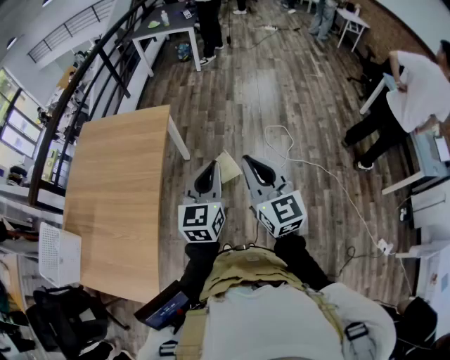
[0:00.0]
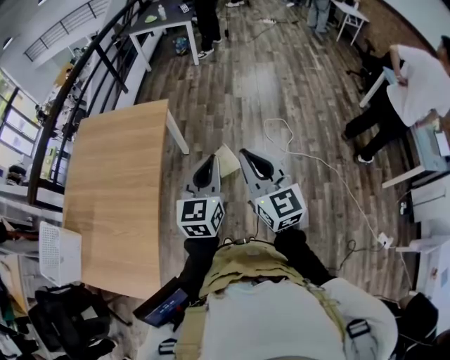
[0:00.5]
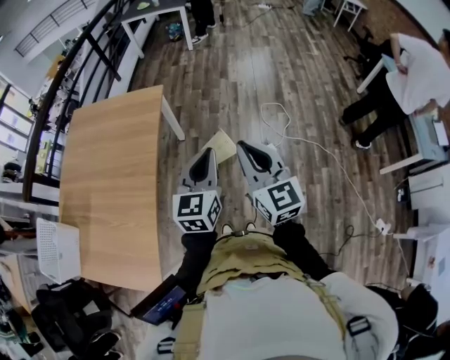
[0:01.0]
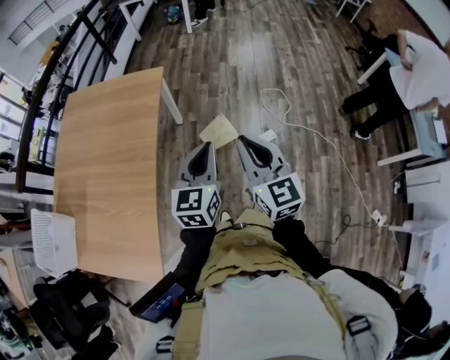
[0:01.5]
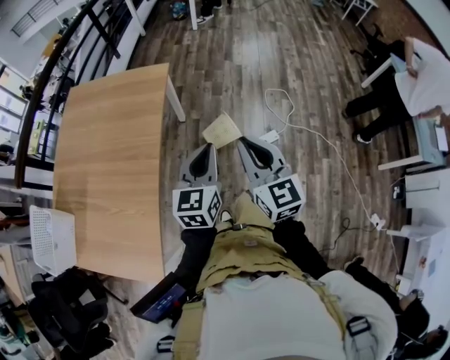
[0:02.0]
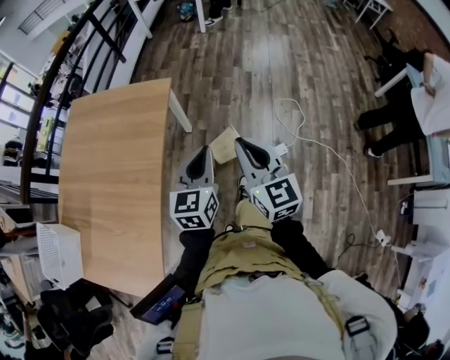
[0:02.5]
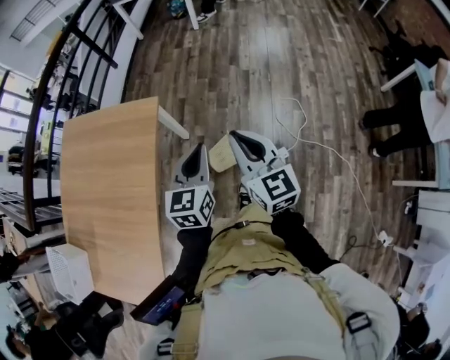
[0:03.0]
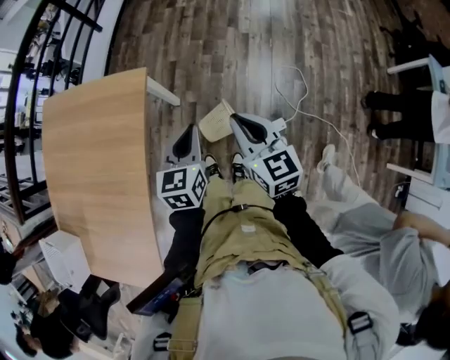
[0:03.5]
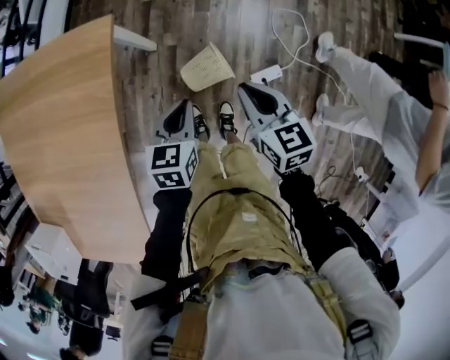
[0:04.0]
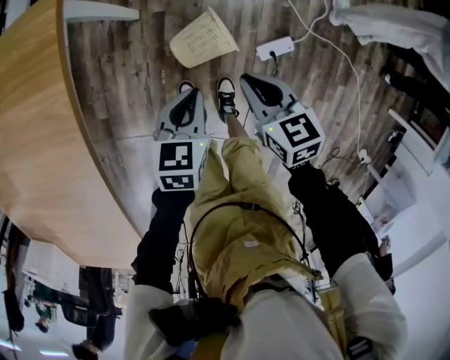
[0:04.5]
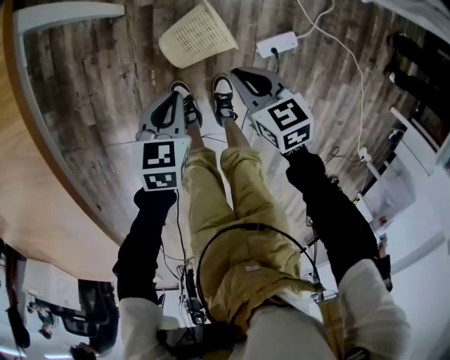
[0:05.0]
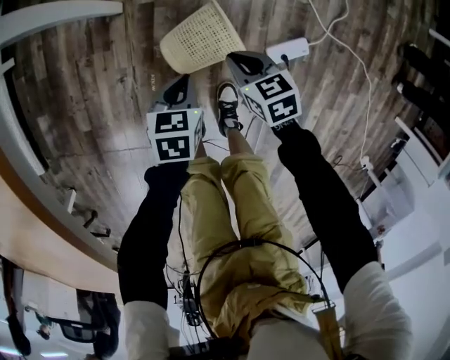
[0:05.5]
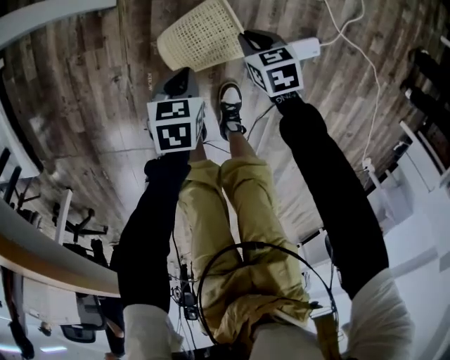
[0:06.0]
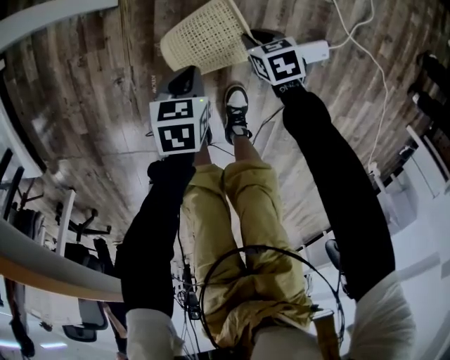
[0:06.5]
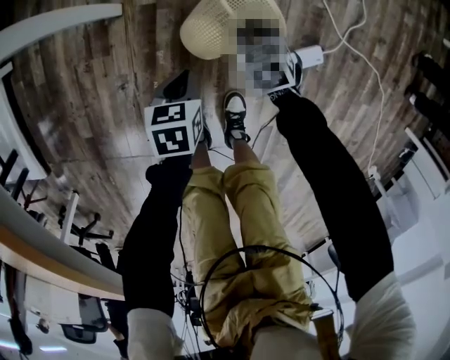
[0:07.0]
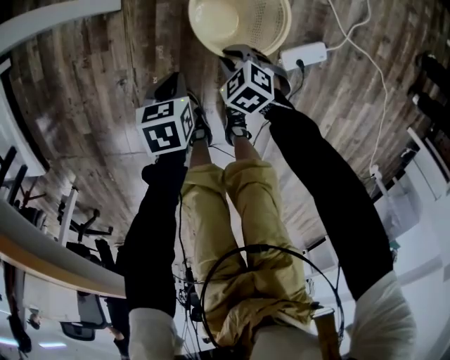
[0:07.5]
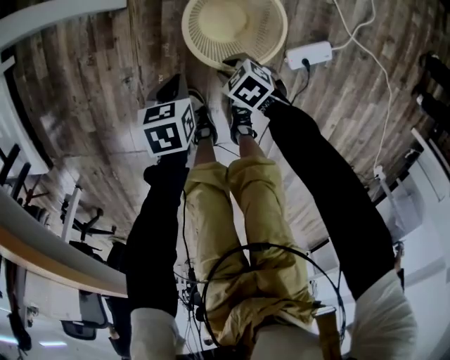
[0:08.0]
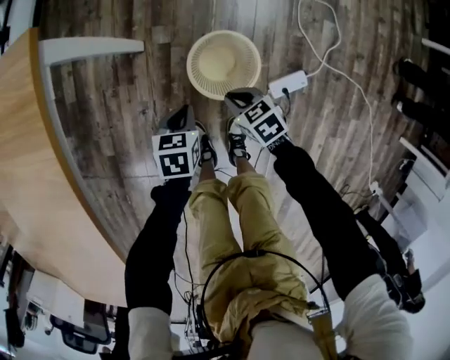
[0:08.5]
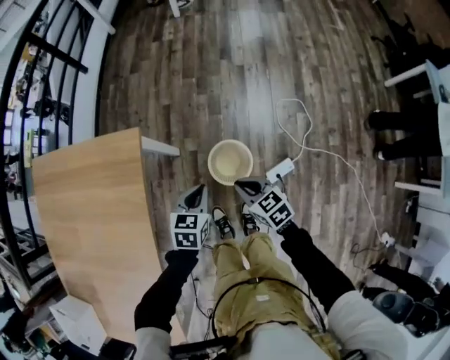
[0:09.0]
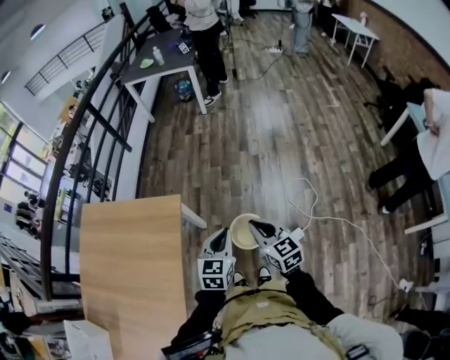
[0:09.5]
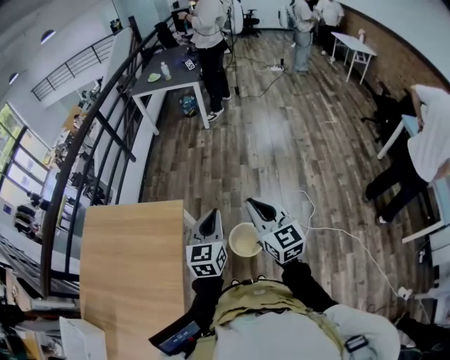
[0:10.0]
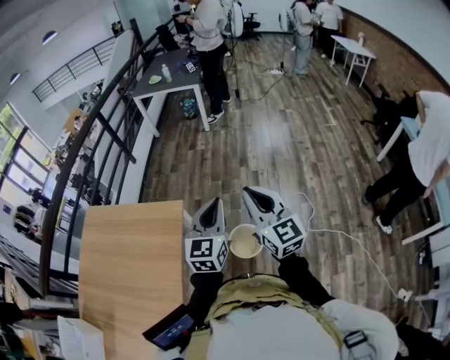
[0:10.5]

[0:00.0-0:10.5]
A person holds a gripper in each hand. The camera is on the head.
0:00.0 to 0:02.0: The two grippers go some 10 cm to the left and downward.
0:02.0 to 0:04.0: Both grippers travel together forward and downward, approximately 40 cm. The right gripper rotates roughly 30 degrees, while the left gripper changes its angle by roughly 30 degrees.
0:04.0 to 0:06.5: Both grippers travel together downward, some 60 cm. The right gripper tilts its fingers about 30 degrees downward; the left gripper swivels some 20 degrees.
0:06.5 to 0:08.5: The left gripper is displaced upward by about 15 cm, while the right gripper moves up and down over roughly 20 cm, changing direction 2 times.
0:08.5 to 0:10.5: The two grippers go roughly 80 cm upward. The left gripper tilts its fingers some 60 degrees upward. The right gripper points its fingers approximately 60 degrees further upward.

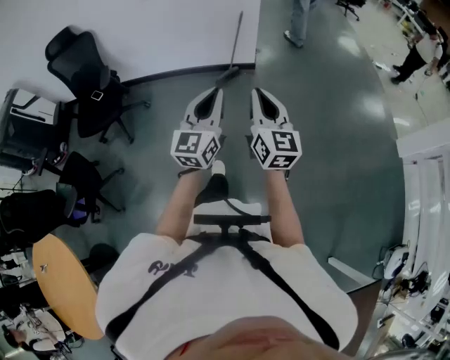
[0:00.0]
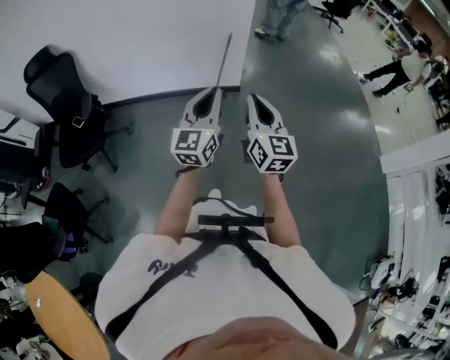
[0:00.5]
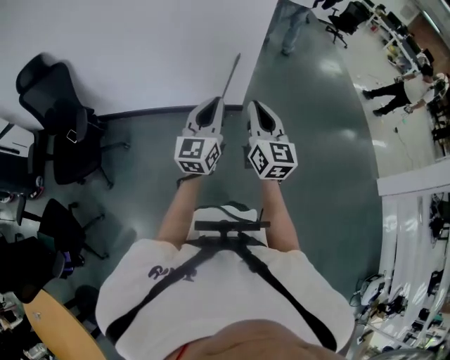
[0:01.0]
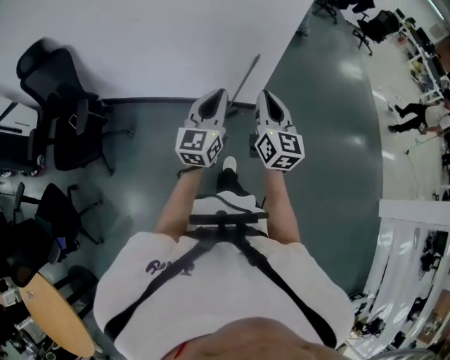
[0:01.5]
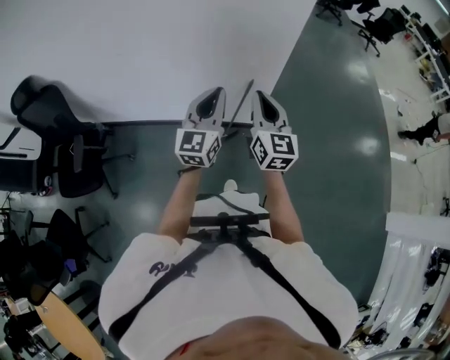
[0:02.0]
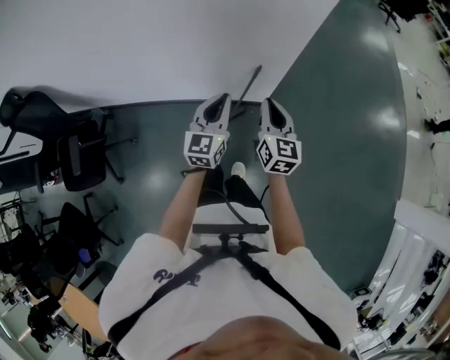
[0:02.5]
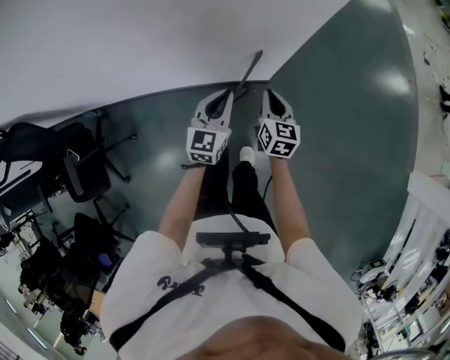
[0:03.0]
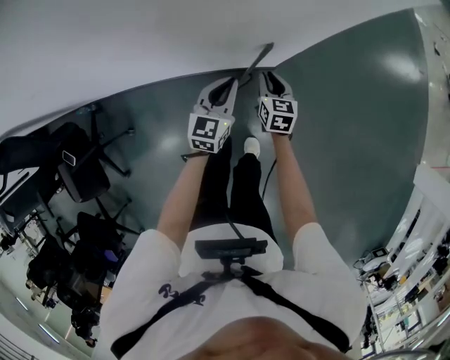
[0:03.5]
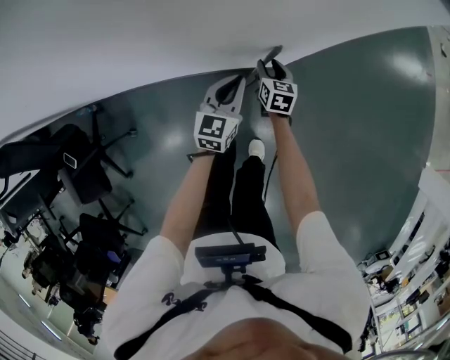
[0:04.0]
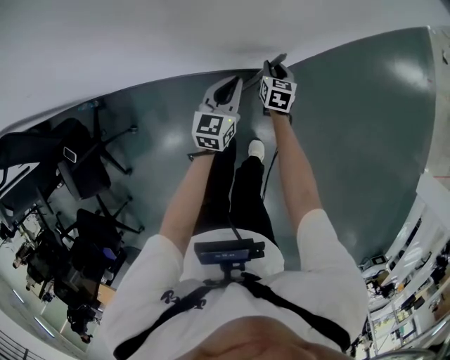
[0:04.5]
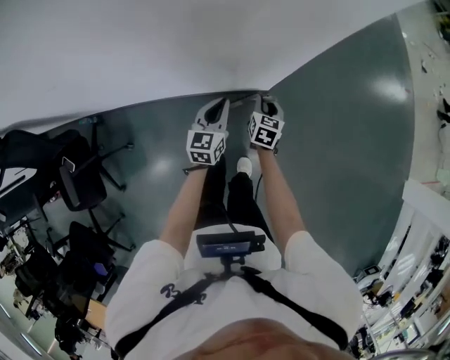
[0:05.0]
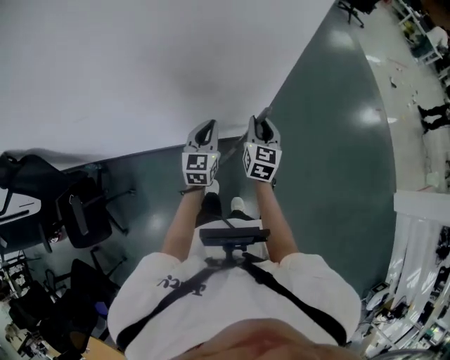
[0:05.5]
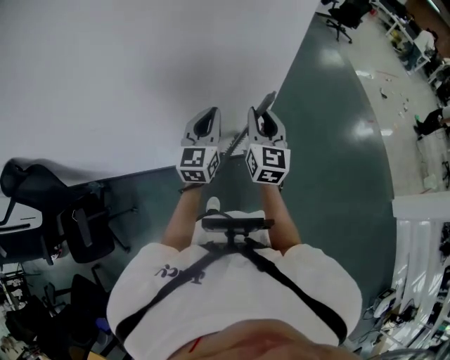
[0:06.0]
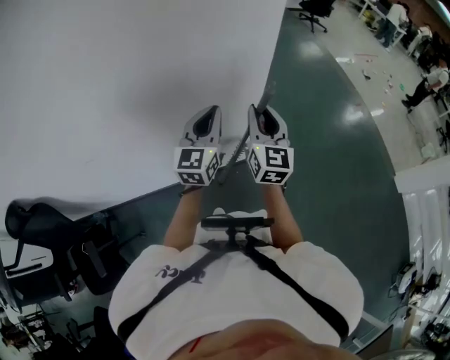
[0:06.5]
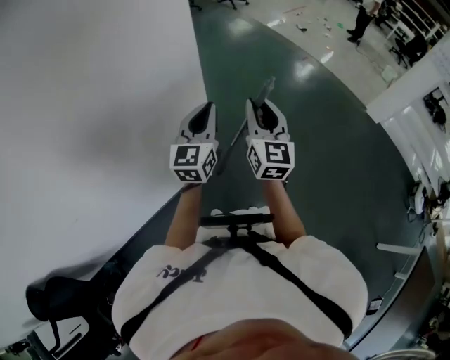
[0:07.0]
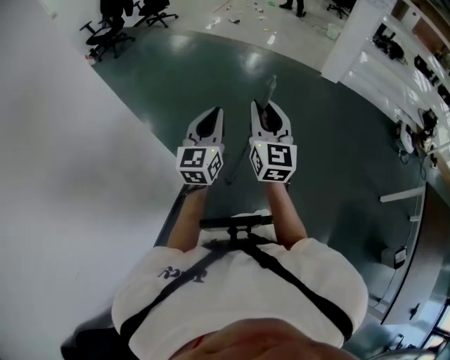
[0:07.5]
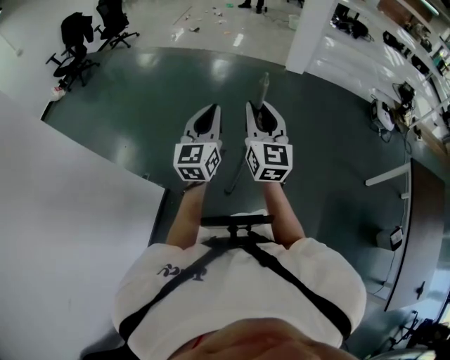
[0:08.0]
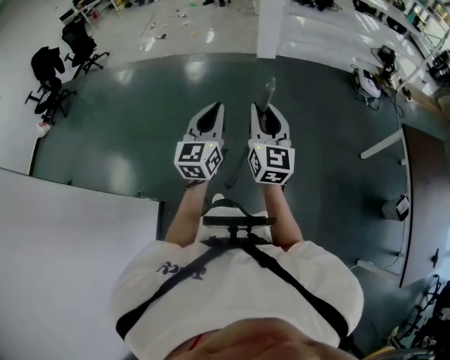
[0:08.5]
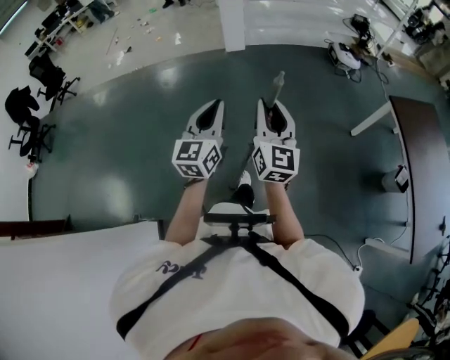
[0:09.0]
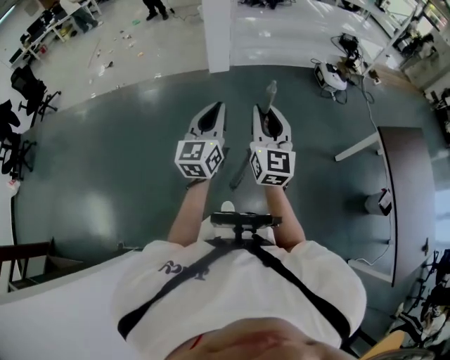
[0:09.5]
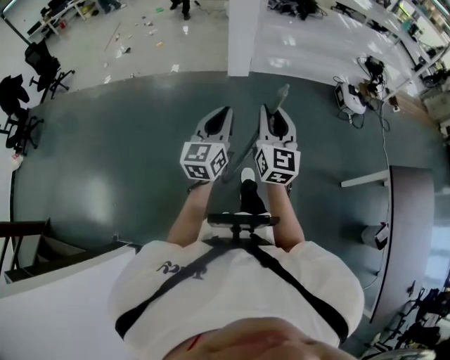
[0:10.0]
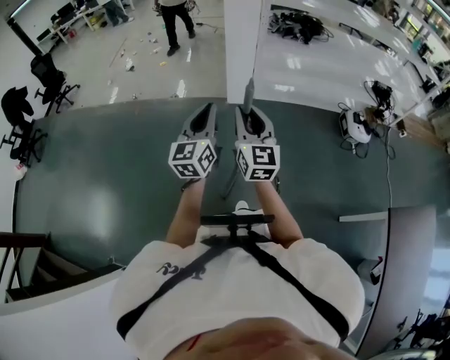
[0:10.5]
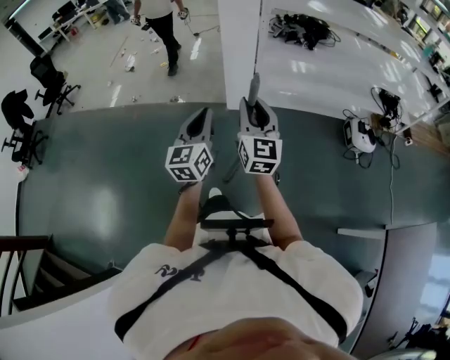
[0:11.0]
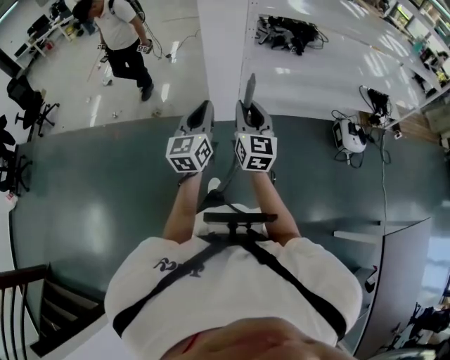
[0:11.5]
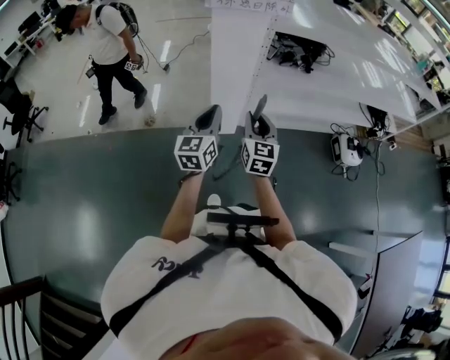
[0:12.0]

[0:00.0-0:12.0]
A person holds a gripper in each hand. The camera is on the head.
0:00.0 to 0:02.0: The two grippers travel together, forward, roughly 70 cm.
0:02.0 to 0:04.0: The two grippers go approximately 60 cm downward and forward. The right gripper tips its fingers downward by roughly 40 degrees, and opens. The left gripper turns by roughly 30 degrees.
0:04.0 to 0:06.0: The grippers both shift upward by some 50 cm. The left gripper rotates approximately 20 degrees; the right gripper angles its fingers upward, by approximately 40 degrees.
0:06.0 to 0:08.0: Both grippers are carried roughly 60 cm. The right gripper swivels about 60 degrees, while the left gripper swivels roughly 60 degrees.
0:08.0 to 0:10.0: The two grippers travel together, approximately 60 cm. The left gripper turns by roughly 20 degrees, while the right gripper rotates some 20 degrees.
0:10.0 to 0:12.0: Both grippers are carried forward, about 60 cm.

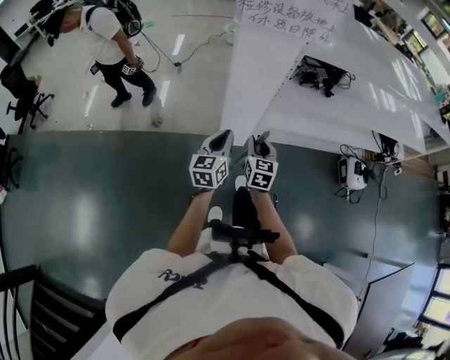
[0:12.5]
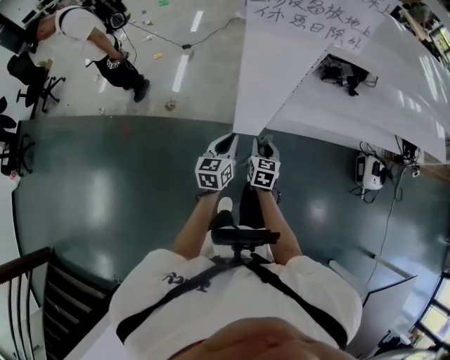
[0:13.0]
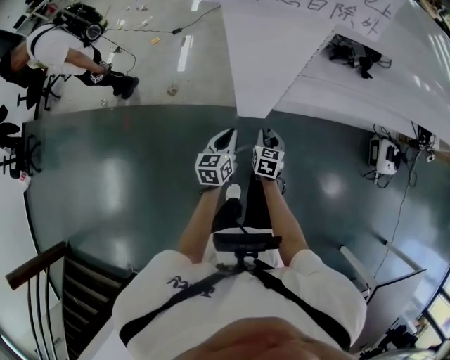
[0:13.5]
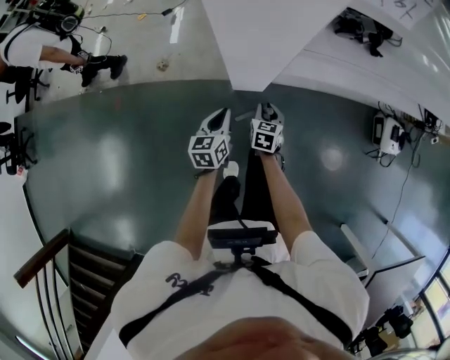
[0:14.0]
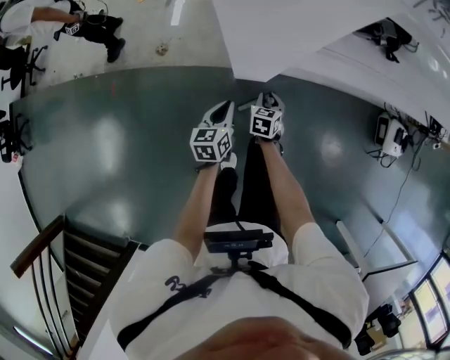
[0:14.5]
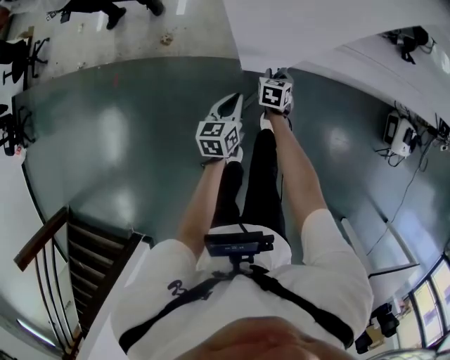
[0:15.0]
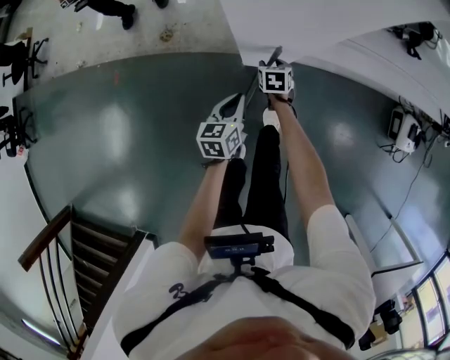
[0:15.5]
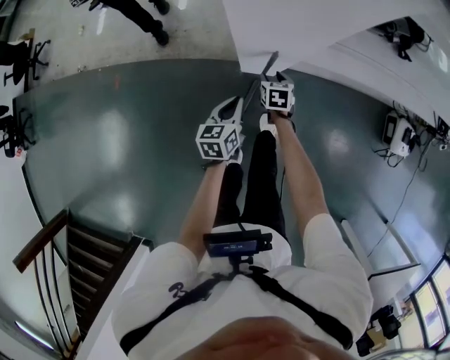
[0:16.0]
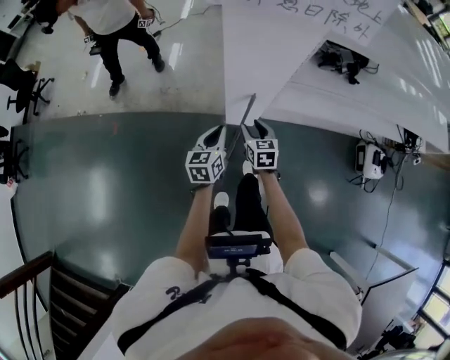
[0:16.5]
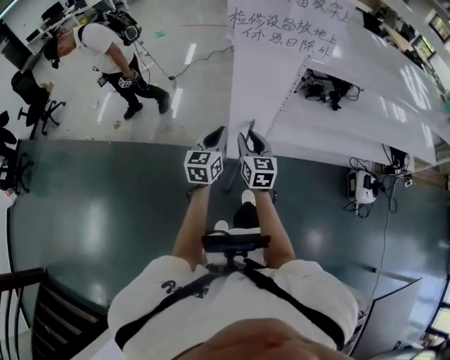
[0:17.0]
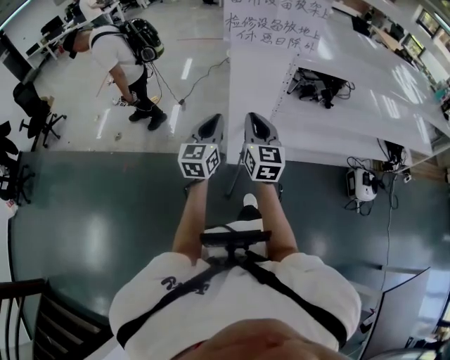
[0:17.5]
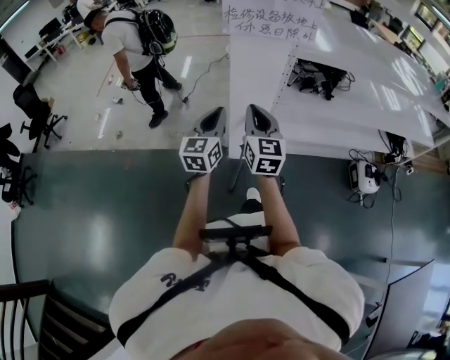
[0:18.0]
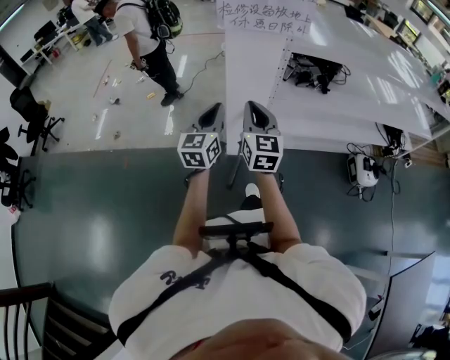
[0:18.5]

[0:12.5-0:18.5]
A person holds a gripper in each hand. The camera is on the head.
0:12.5 to 0:14.5: The grippers both shift downward and forward by approximately 30 cm. The left gripper changes its angle by about 30 degrees; the right gripper angles its fingers downward, by approximately 30 degrees.
0:14.5 to 0:16.5: The grippers both shift upward by roughly 15 cm. The right gripper swivels about 20 degrees, and opens.
0:16.5 to 0:18.5: Both grippers move upward, some 30 cm. The left gripper rotates about 30 degrees; the right gripper tilts its fingers approximately 30 degrees upward, and closes up.
